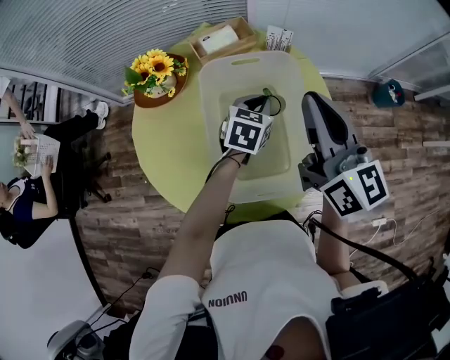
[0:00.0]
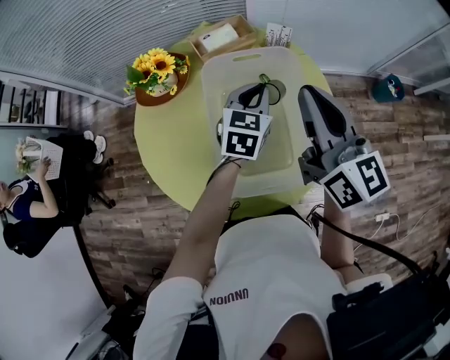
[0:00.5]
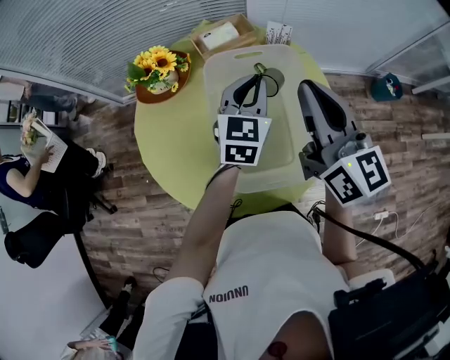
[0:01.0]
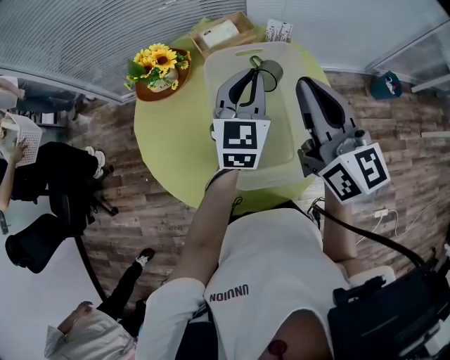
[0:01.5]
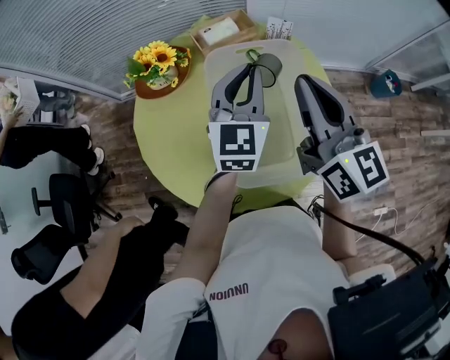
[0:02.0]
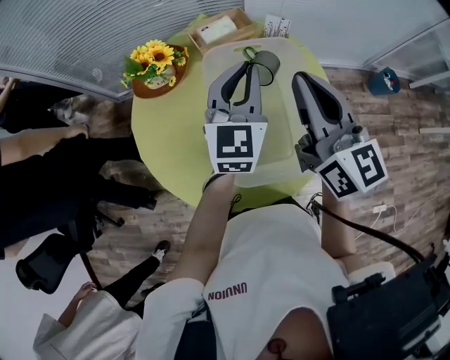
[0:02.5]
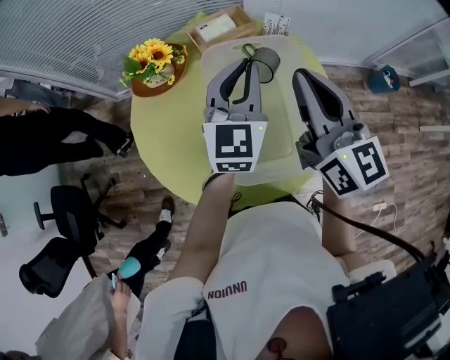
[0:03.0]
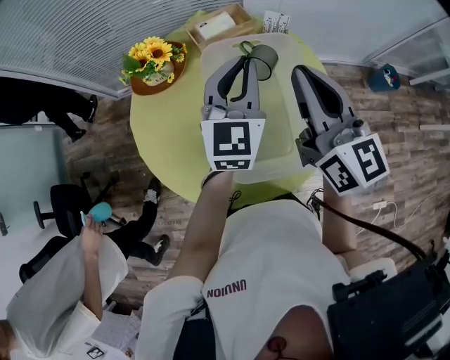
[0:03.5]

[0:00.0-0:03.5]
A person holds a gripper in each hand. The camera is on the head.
0:00.0 to 0:02.0: The left gripper travels upward by some 15 cm, and angles its fingers upward, by about 30 degrees.
0:02.0 to 0:03.5: There are only small adjustments of the grippers.

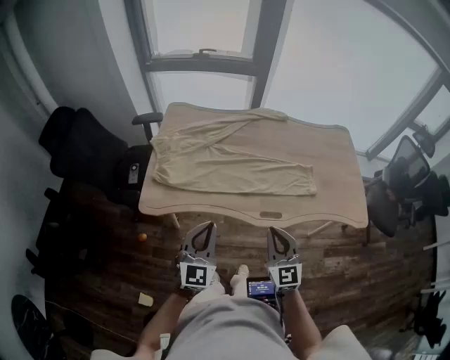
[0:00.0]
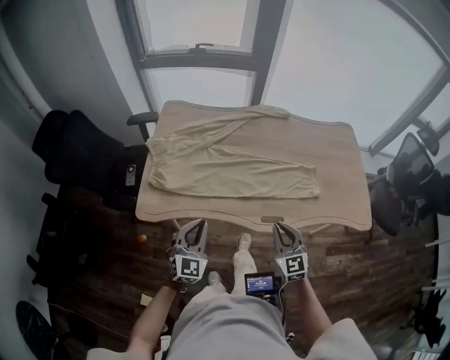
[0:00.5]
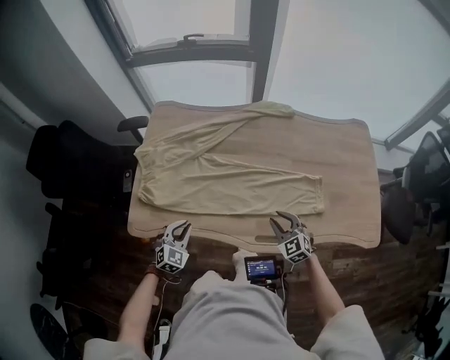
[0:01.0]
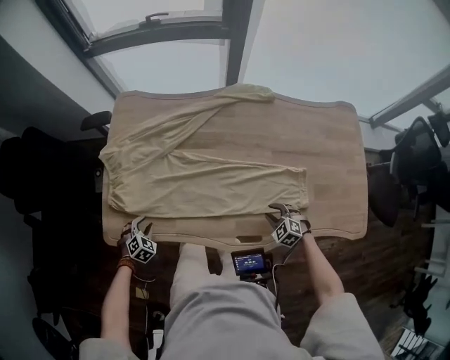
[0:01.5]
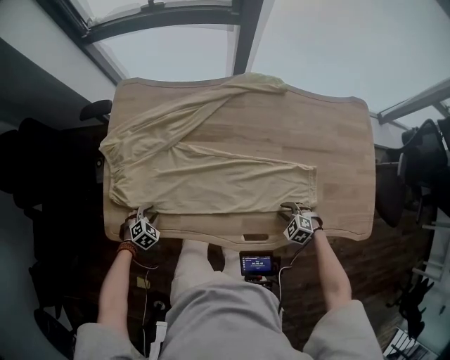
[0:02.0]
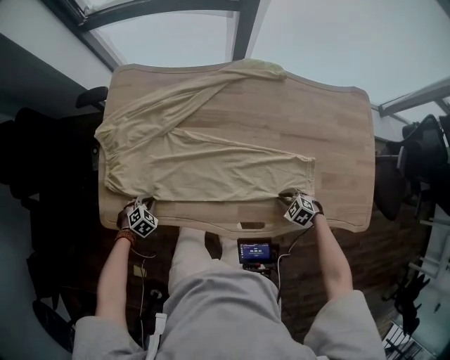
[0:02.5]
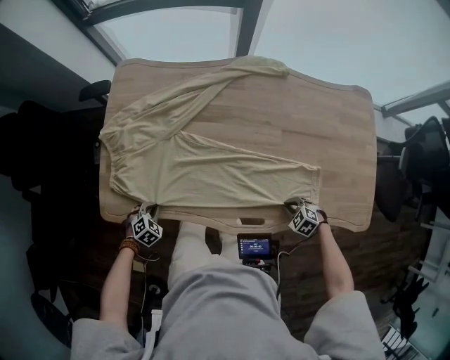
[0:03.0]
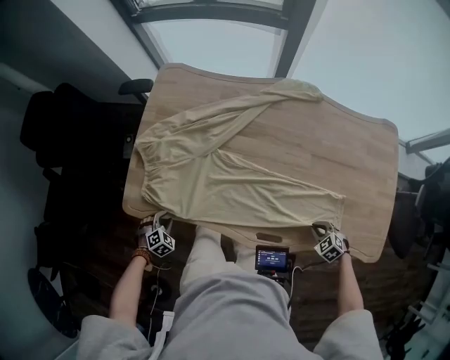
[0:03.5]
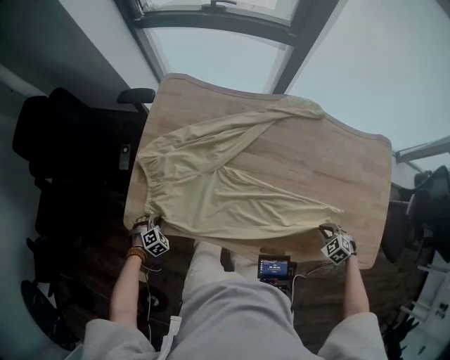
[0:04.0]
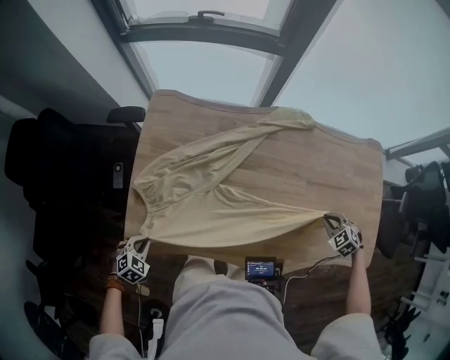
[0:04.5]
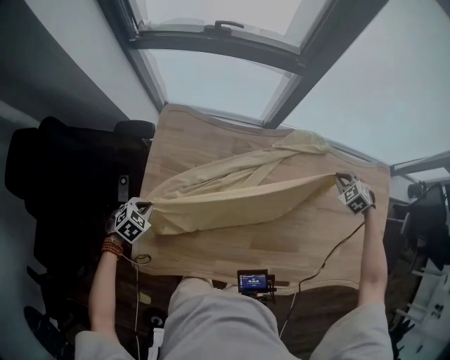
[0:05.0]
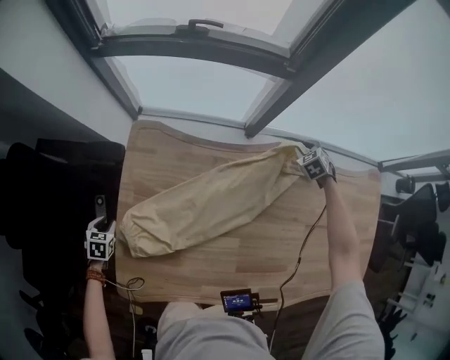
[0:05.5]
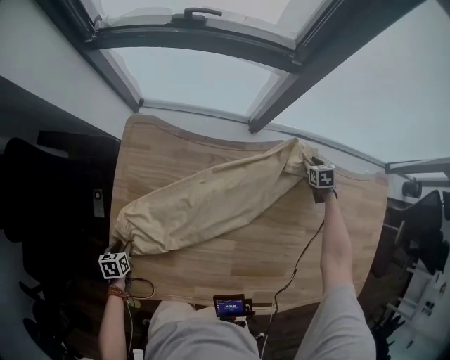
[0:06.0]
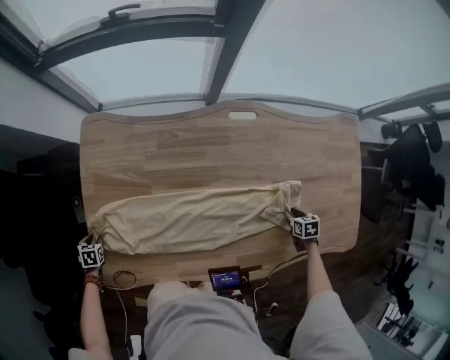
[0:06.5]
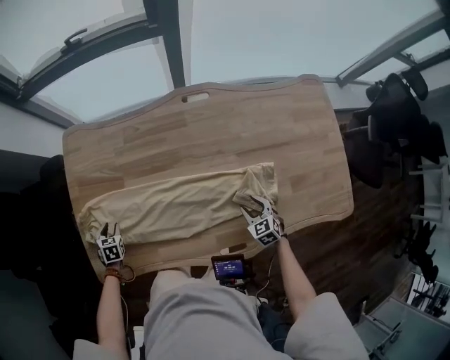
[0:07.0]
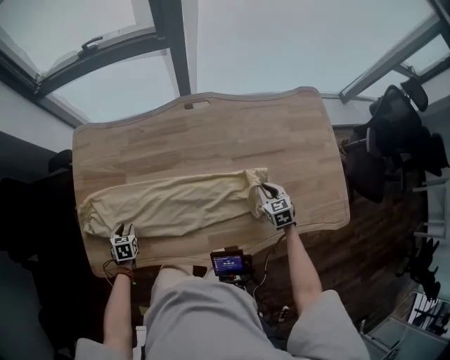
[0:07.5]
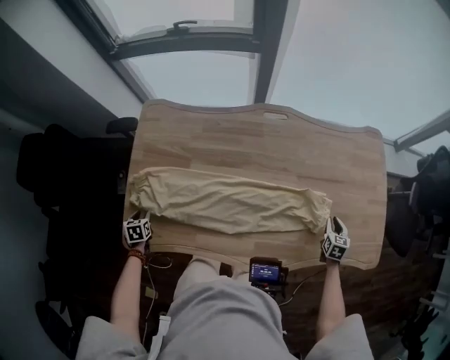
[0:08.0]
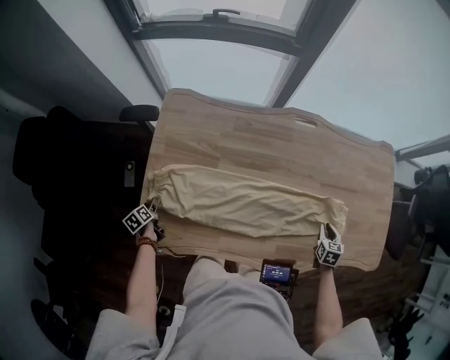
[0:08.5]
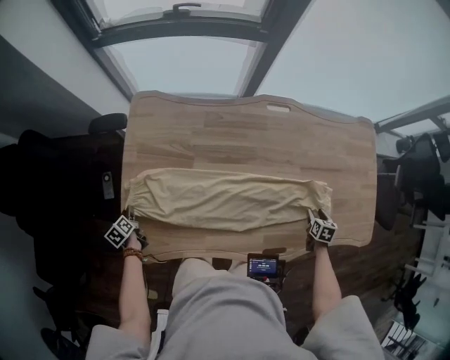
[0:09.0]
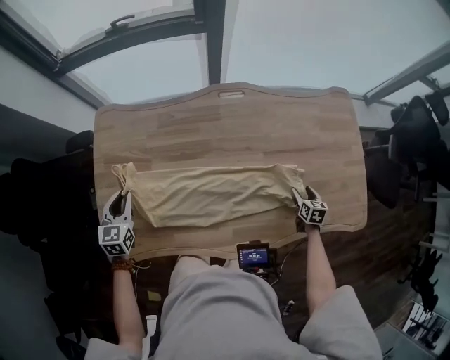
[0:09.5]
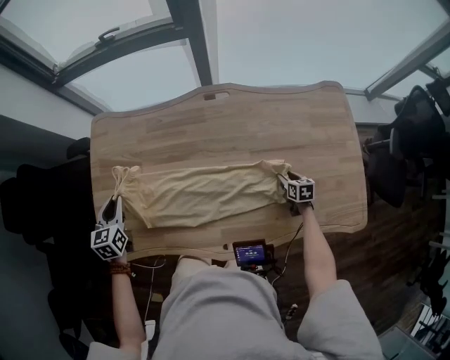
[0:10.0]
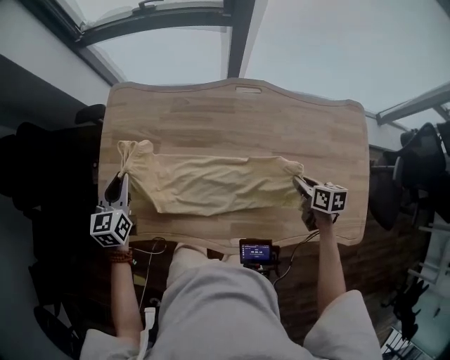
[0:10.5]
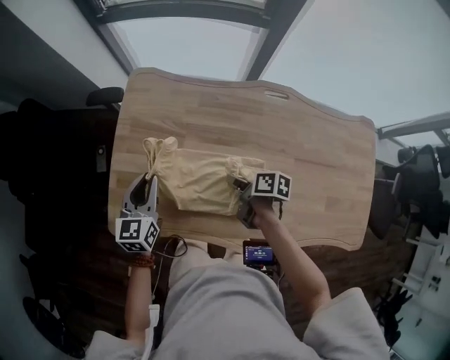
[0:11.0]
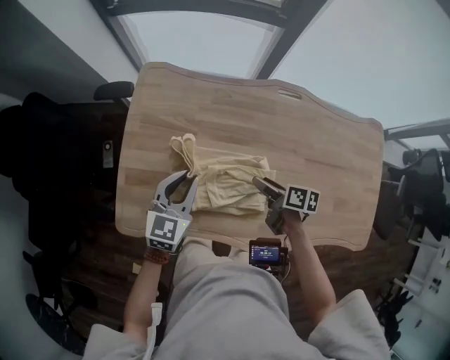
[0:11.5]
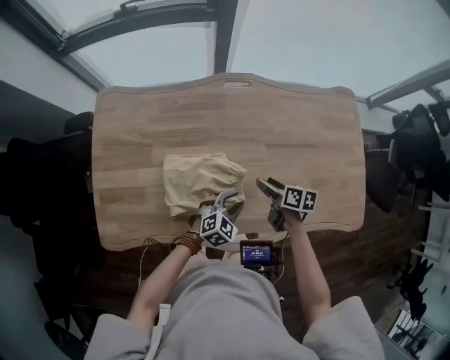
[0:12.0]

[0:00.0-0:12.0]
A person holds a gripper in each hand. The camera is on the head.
0:00.0 to 0:02.0: The left gripper travels downward and forward by about 50 cm, tips its fingers downward by roughly 70 degrees, and opens its fingers, while the right gripper shifts about 50 cm downward, to the right and forward, tips its fingers downward by approximately 60 degrees, and opens its fingers.
0:02.0 to 0:04.0: The left gripper travels to the left by about 10 cm, and closes; the right gripper moves upward and to the right, roughly 10 cm, and closes up.
0:04.0 to 0:06.0: The left gripper reaches approximately 15 cm upward, then returns, twists roughly 70 degrees counterclockwise, seen from behind, and opens its fingers, while the right gripper changes place by roughly 50 cm, twists about 40 degrees clockwise, seen from behind, and opens its fingers.
0:06.0 to 0:08.0: The right gripper shifts by about 50 cm, and swivels some 30 degrees.
0:08.0 to 0:10.0: The left gripper goes roughly 30 cm upward, to the right and forward, and turns by roughly 30 degrees. Meanwhile the right gripper shifts some 10 cm downward and forward, travels to the left and back again, some 15 cm each way, swivels some 20 degrees, and opens up.
0:10.0 to 0:12.0: The left gripper moves about 35 cm, and changes its angle by roughly 60 degrees. The right gripper turns by approximately 30 degrees, and closes and opens again.

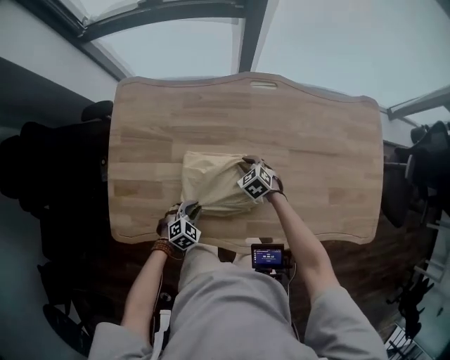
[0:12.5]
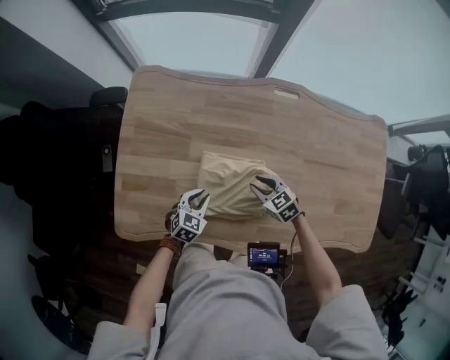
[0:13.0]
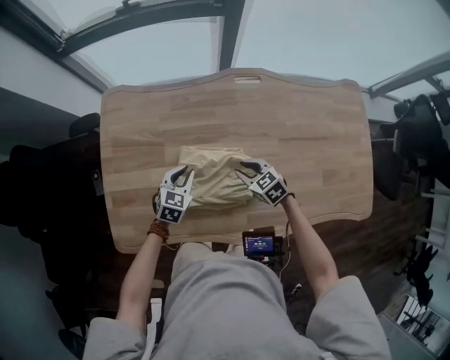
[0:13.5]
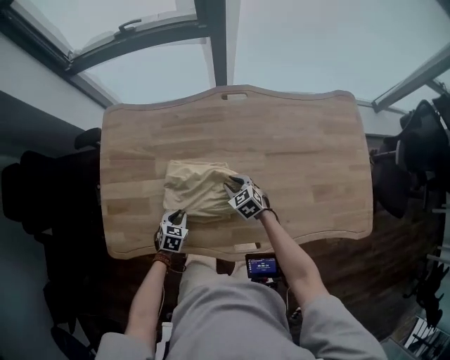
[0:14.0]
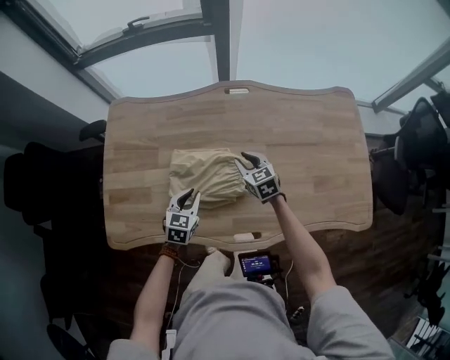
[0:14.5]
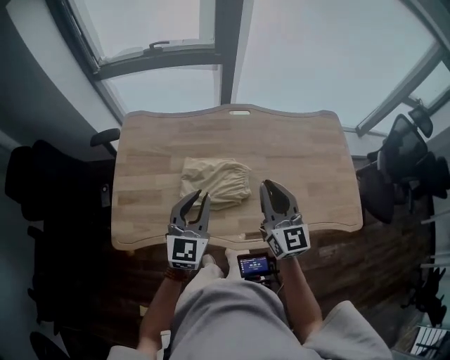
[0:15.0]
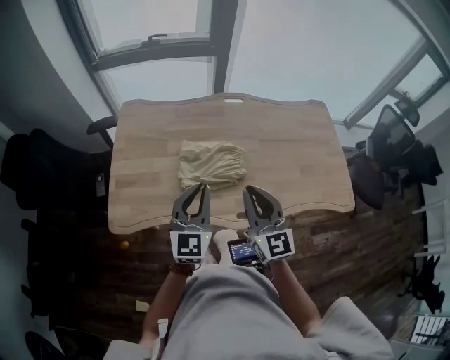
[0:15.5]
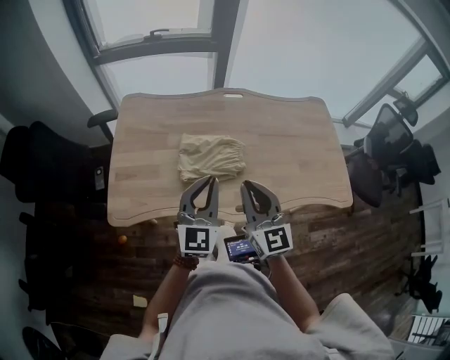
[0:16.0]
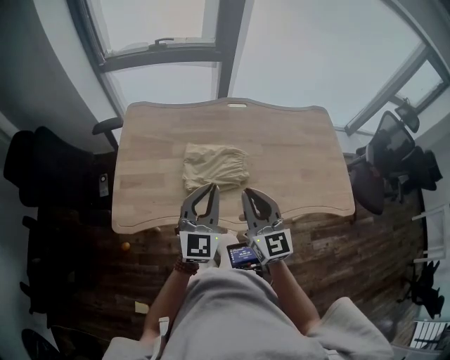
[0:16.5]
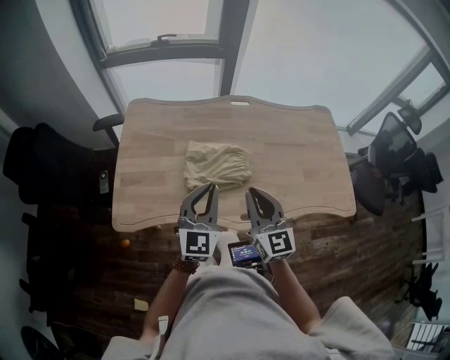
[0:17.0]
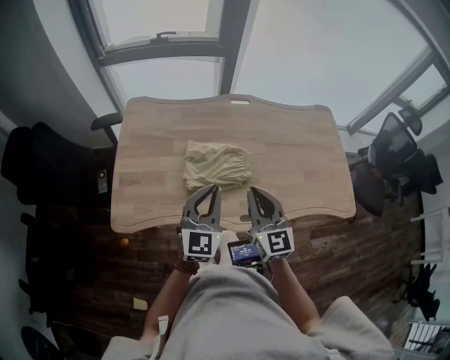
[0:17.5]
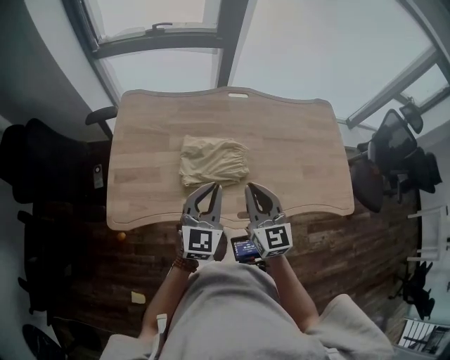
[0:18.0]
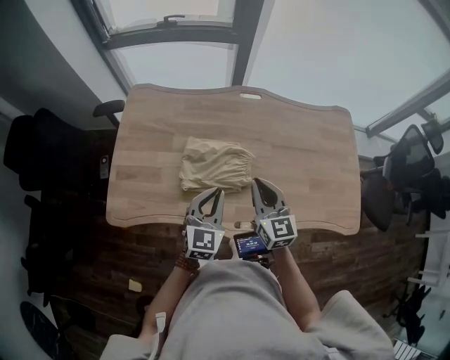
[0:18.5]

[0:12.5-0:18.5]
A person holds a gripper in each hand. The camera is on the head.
0:12.5 to 0:14.5: The left gripper is displaced upward and to the right by some 15 cm, reaches about 15 cm forward, then returns, and changes its angle by roughly 40 degrees, while the right gripper goes up and down, some 10 cm each way, reversing 2 times, and swivels roughly 30 degrees.
0:14.5 to 0:16.5: The right gripper heads backward and upward, covering some 40 cm, and angles its fingers upward, by roughly 40 degrees. The left gripper moves upward and backward, approximately 30 cm, and angles its fingers upward, by about 40 degrees.
0:16.5 to 0:18.5: The left gripper heads downward, forward and to the right, covering approximately 15 cm, while the right gripper shifts some 15 cm forward, downward and to the right.

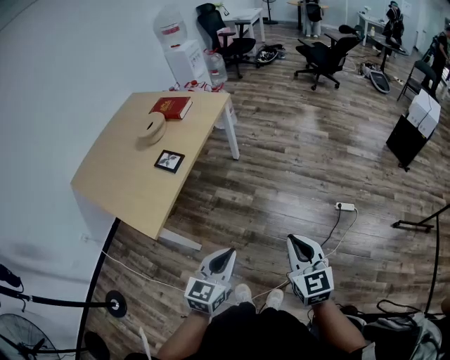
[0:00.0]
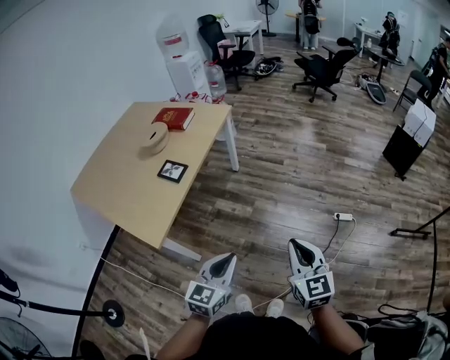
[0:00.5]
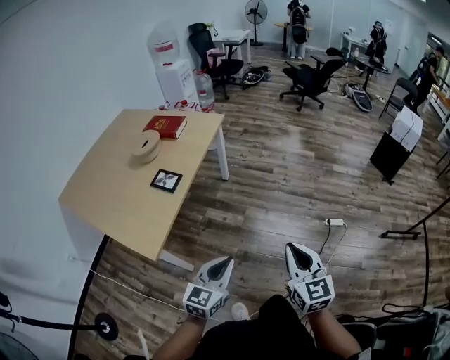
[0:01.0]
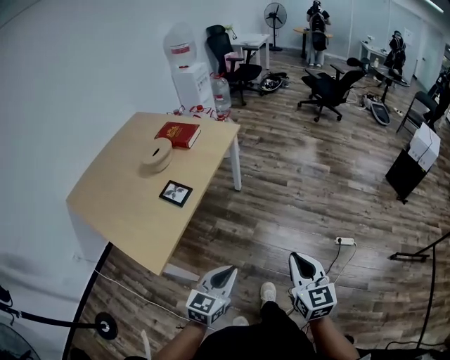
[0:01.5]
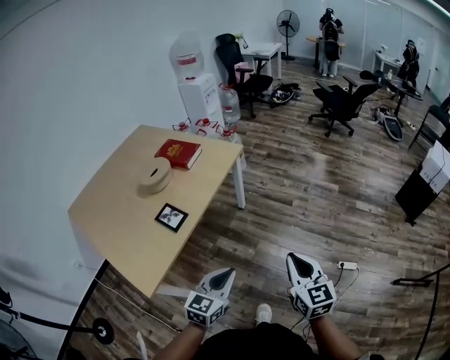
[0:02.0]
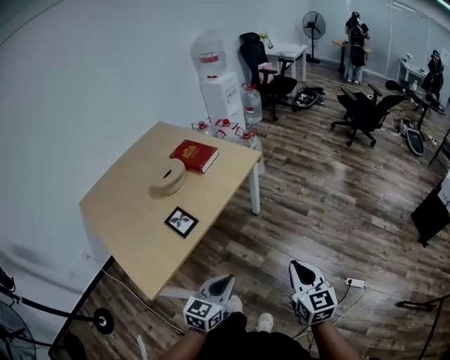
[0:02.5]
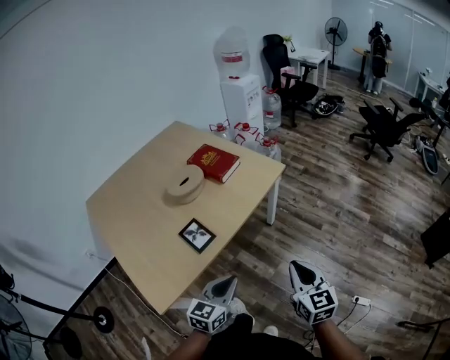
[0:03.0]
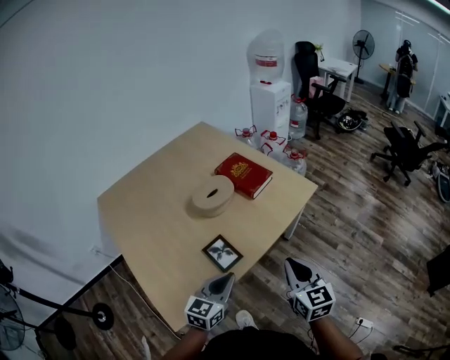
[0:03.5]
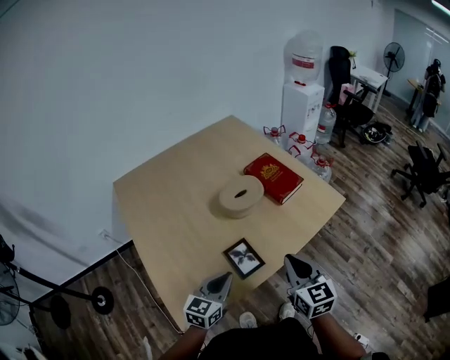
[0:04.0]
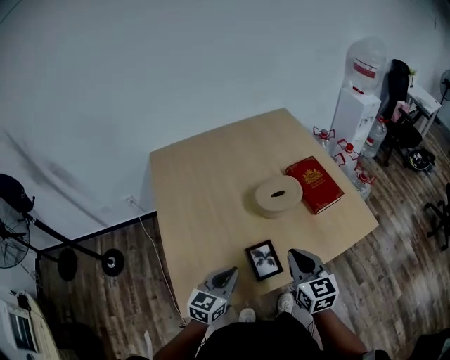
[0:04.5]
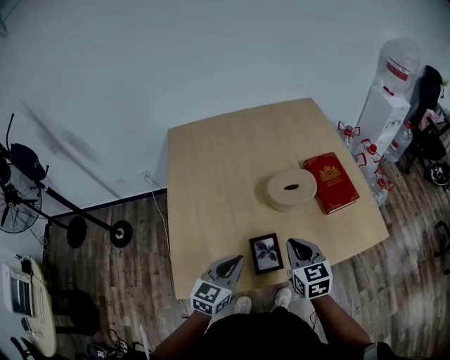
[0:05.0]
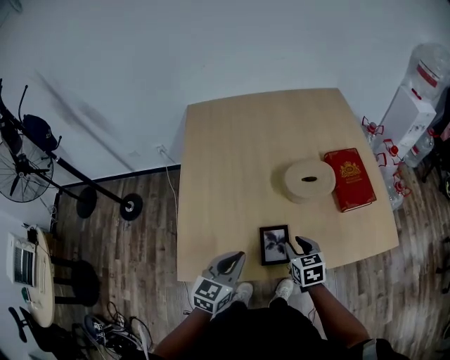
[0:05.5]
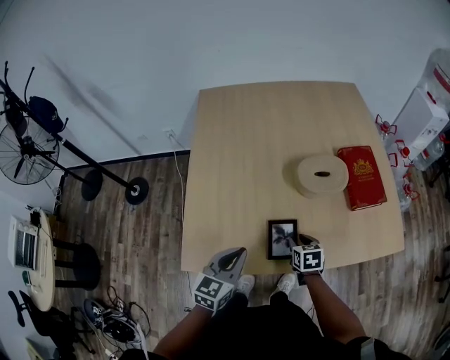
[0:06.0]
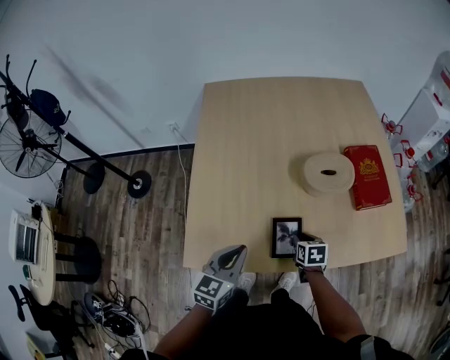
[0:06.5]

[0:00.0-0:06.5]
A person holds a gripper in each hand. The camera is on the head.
0:00.0 to 0:02.0: The two grippers go roughly 25 cm forward.
0:02.0 to 0:04.5: The two grippers travel together, approximately 50 cm. The left gripper rotates about 40 degrees; the right gripper swivels about 50 degrees.
0:04.5 to 0:06.5: The right gripper shifts approximately 25 cm downward, angles its fingers downward, by roughly 40 degrees, and opens its fingers, while the left gripper swivels roughly 20 degrees.
